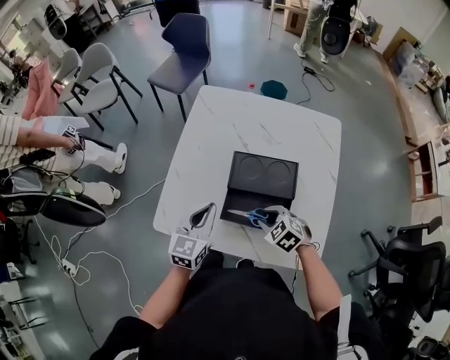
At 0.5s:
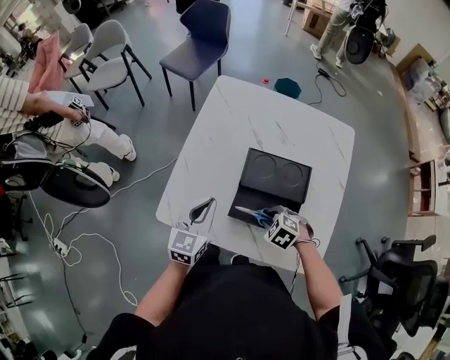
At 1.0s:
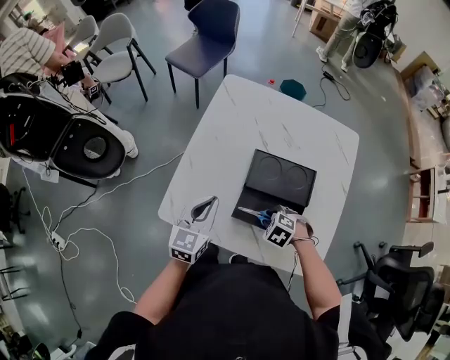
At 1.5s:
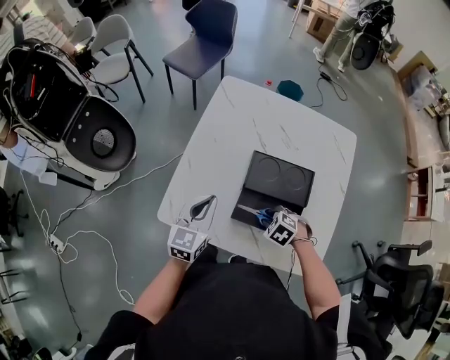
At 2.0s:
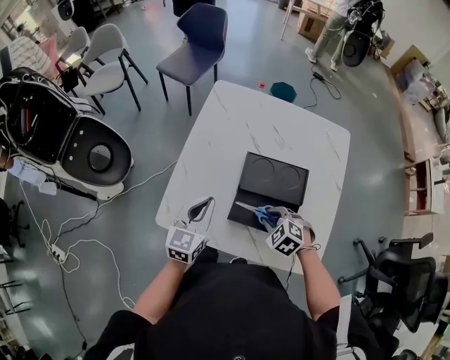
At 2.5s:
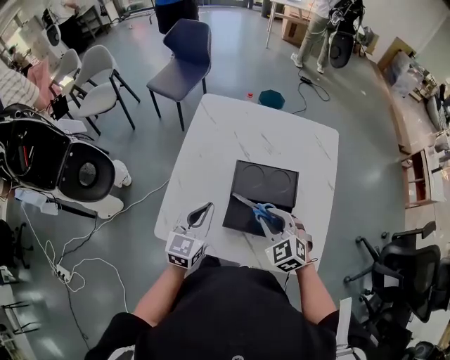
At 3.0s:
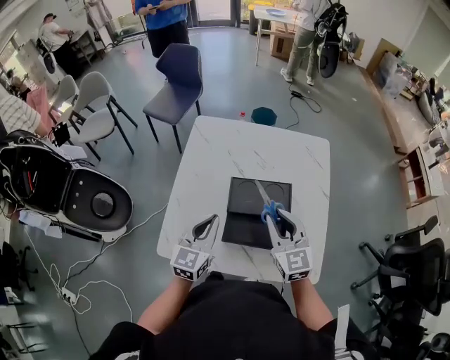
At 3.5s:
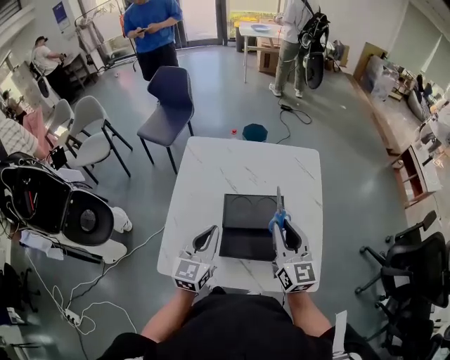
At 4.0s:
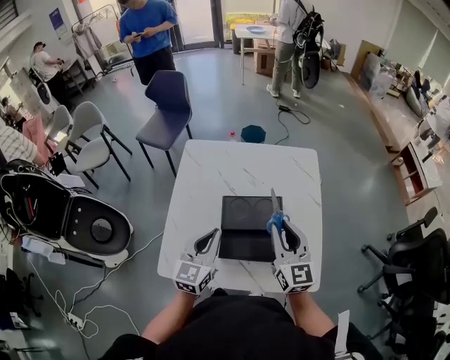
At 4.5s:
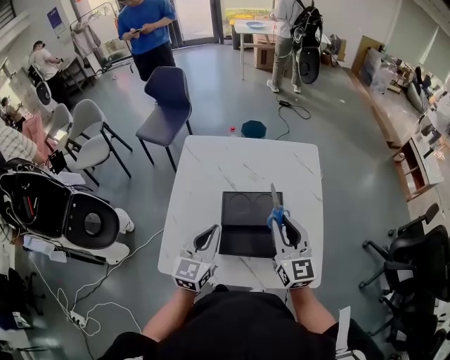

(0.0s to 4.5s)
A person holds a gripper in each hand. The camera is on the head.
2.0s - 4.5s: The right gripper travels upward by roughly 20 cm, and tilts its fingers about 60 degrees upward, while the left gripper is displaced upward by some 5 cm.

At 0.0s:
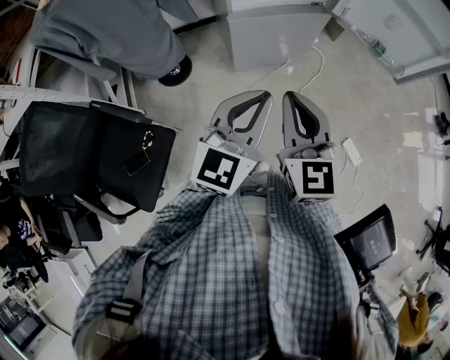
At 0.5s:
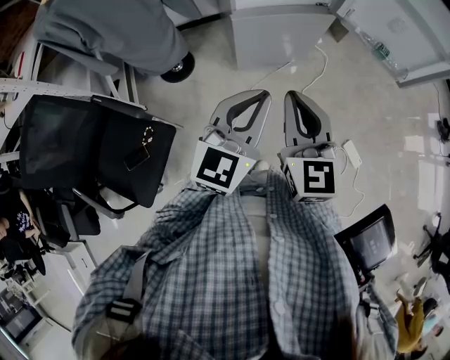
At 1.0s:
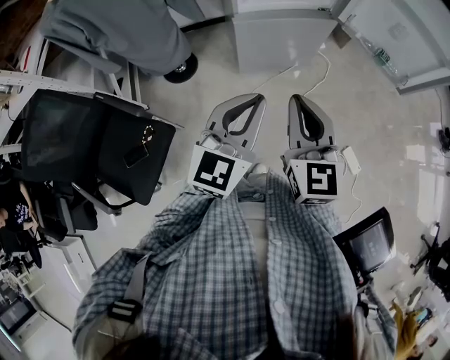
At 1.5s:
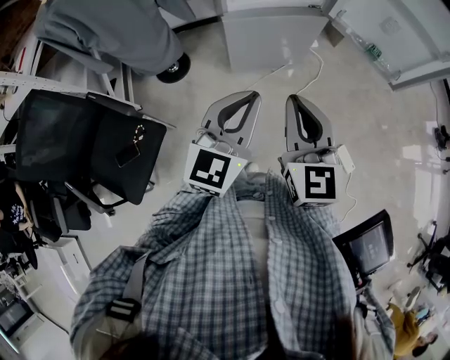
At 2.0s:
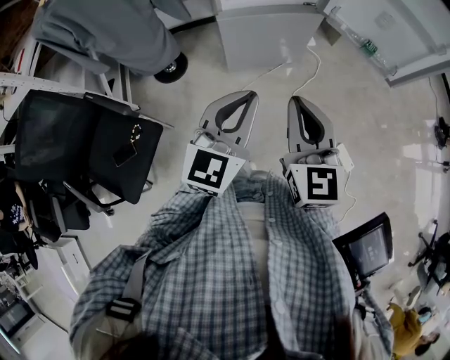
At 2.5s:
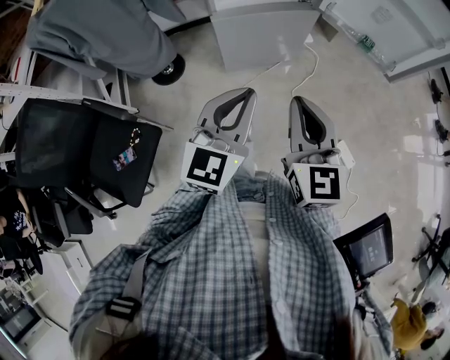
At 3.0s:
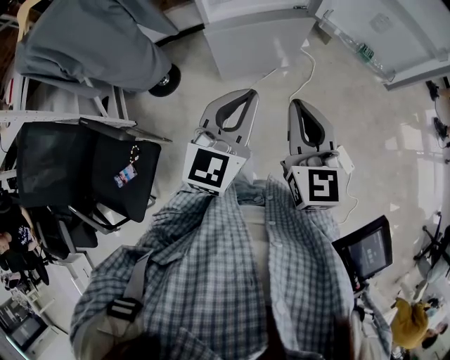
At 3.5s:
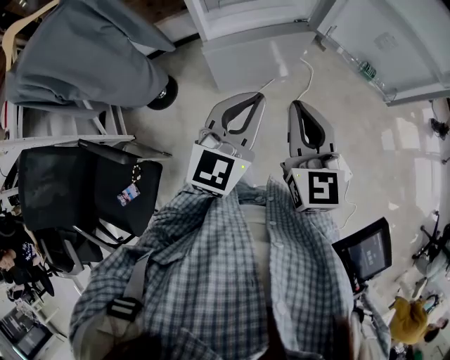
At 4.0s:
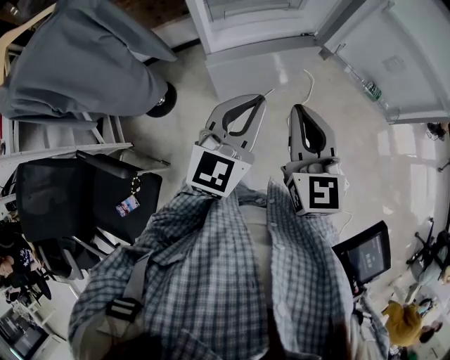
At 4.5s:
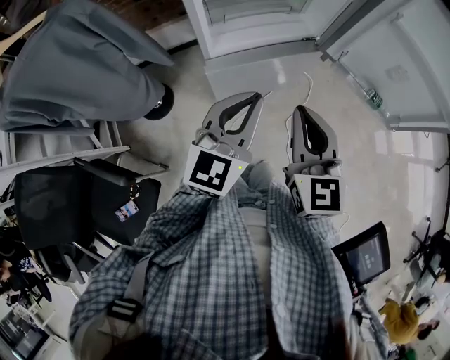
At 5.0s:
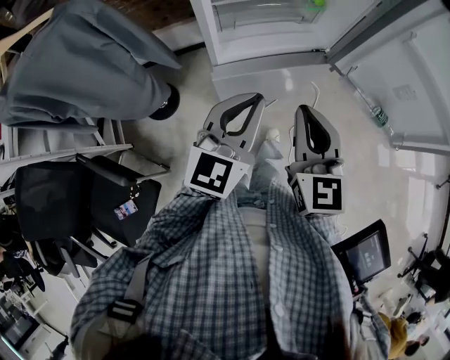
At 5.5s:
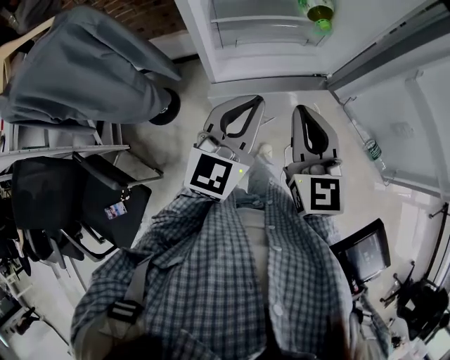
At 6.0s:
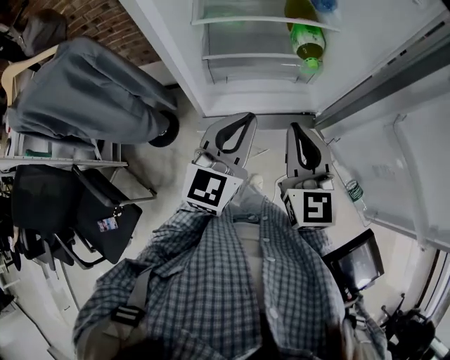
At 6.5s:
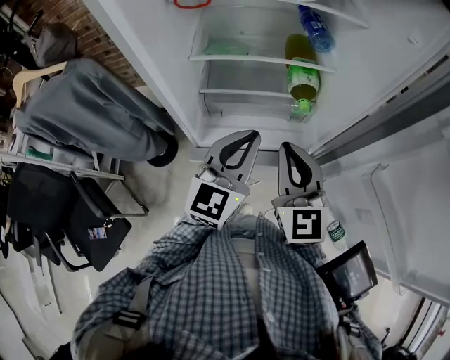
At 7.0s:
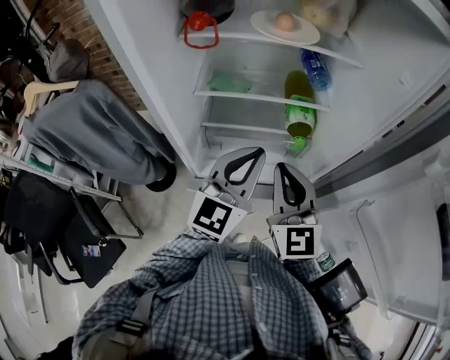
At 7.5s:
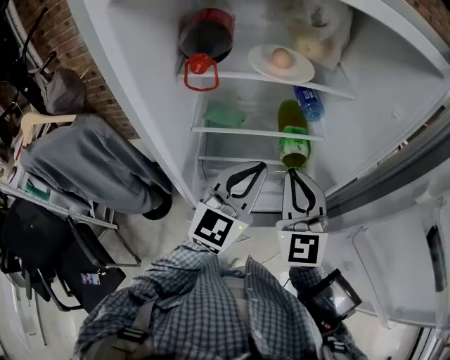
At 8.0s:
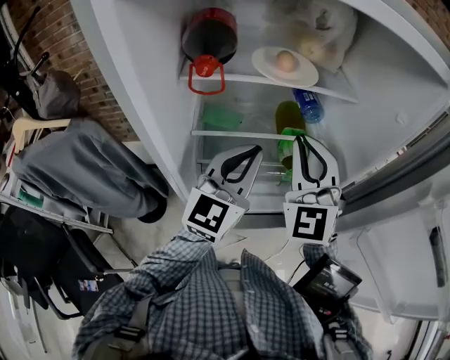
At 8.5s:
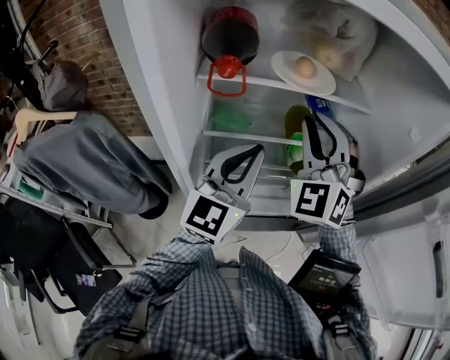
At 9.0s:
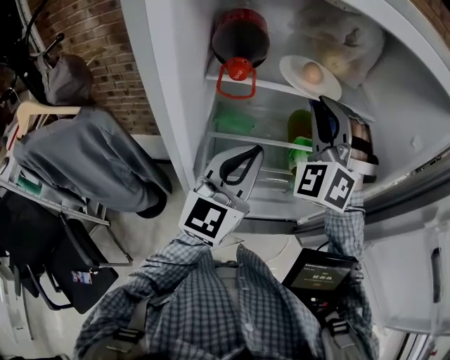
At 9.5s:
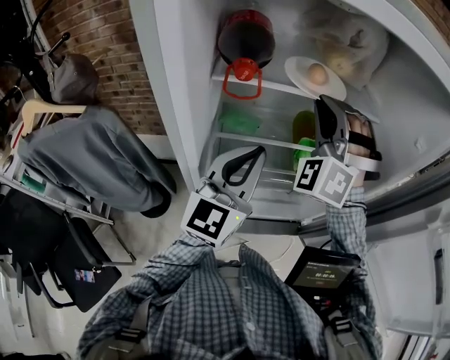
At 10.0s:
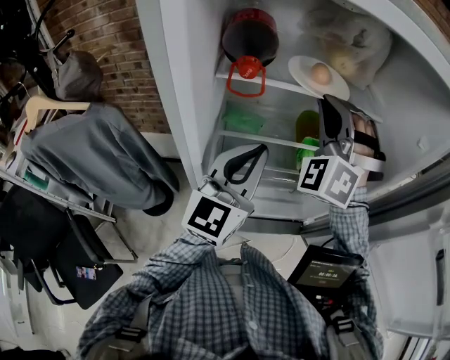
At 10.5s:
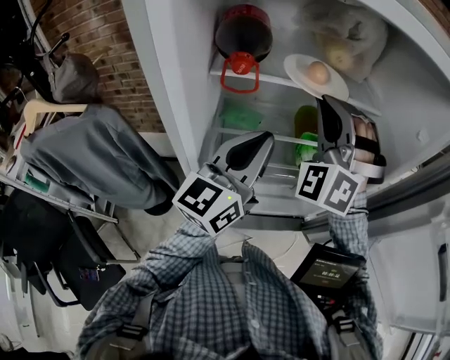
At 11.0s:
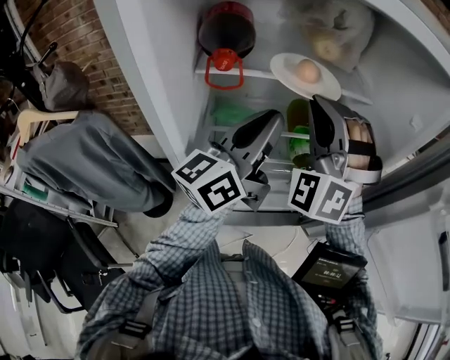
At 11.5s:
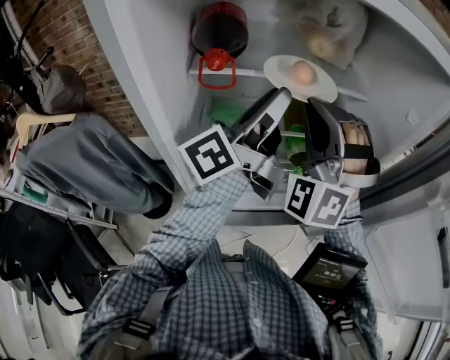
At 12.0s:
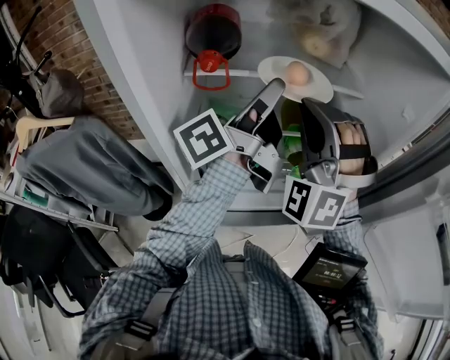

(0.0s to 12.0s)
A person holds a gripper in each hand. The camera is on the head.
0.0s - 2.0s: The right gripper is displaced to the right by approximately 10 cm; the left gripper heads to the right, covering about 5 cm.
2.0s - 4.0s: The two grippers go approximately 20 cm forward.
4.0s - 6.0s: Both grippers move forward, approximately 20 cm.
6.0s - 8.0s: Both grippers travel together forward and upward, approximately 25 cm. The right gripper changes its angle by roughly 40 degrees.
8.0s - 10.0s: The left gripper is displaced to the left by roughly 5 cm, while the right gripper moves forward, roughly 10 cm, and rotates roughly 40 degrees.
10.0s - 12.0s: The right gripper is displaced backward by some 5 cm. Meanwhile the left gripper goes some 10 cm upward and forward, twists about 70 degrees counterclockwise, seen from behind, and opens its fingers.

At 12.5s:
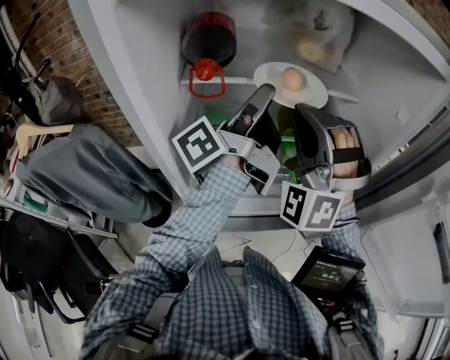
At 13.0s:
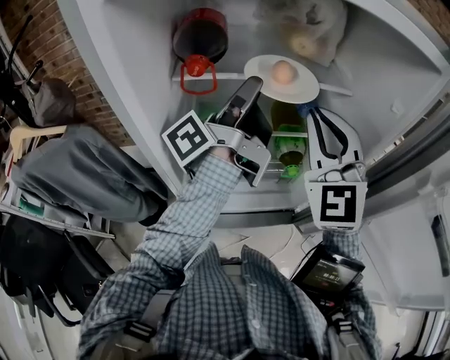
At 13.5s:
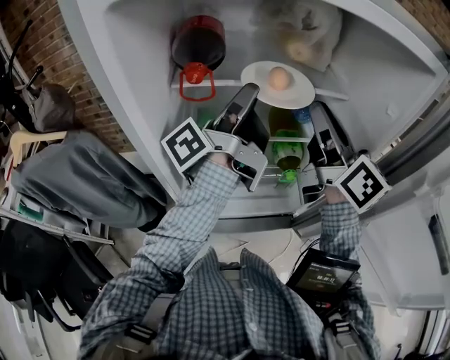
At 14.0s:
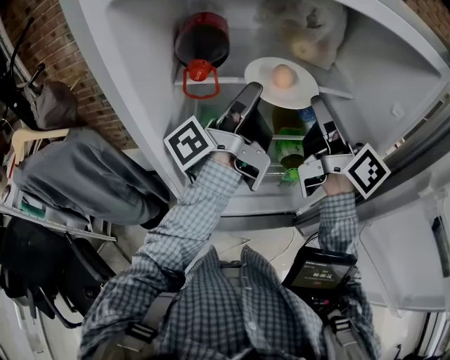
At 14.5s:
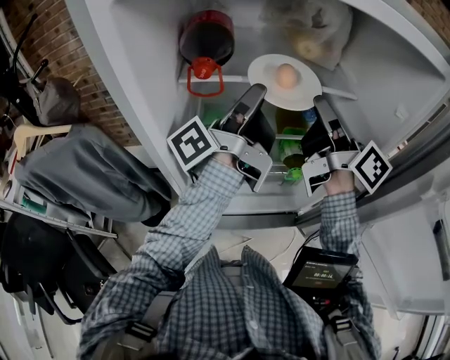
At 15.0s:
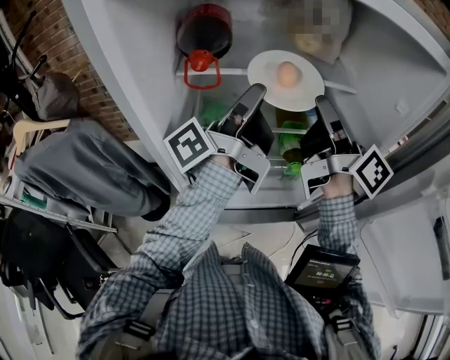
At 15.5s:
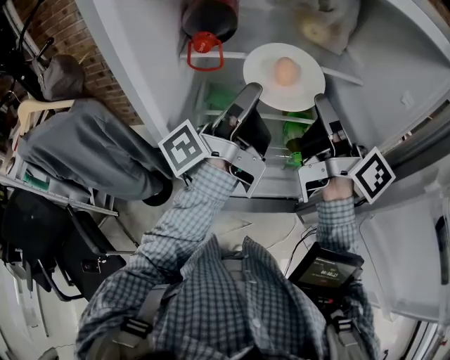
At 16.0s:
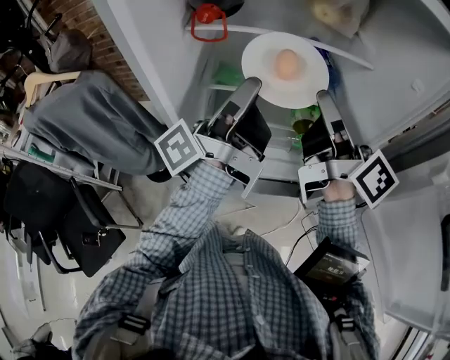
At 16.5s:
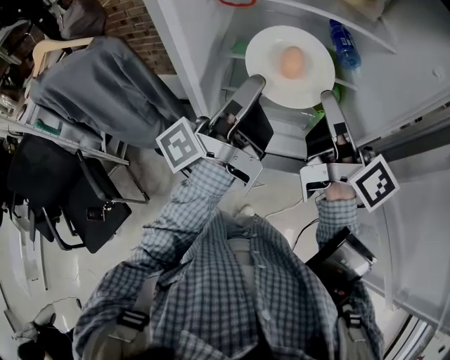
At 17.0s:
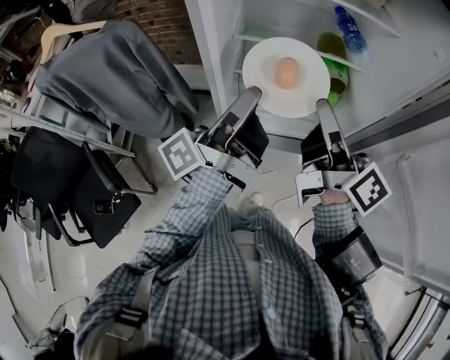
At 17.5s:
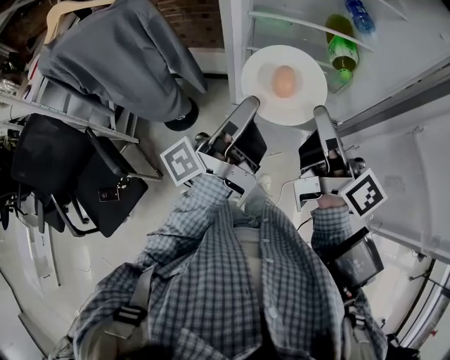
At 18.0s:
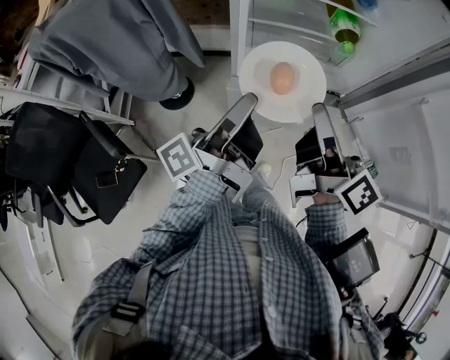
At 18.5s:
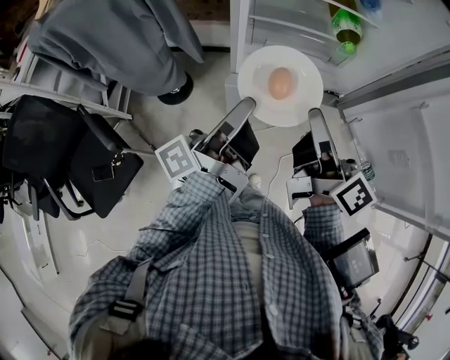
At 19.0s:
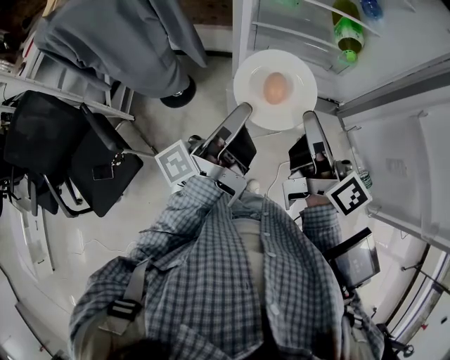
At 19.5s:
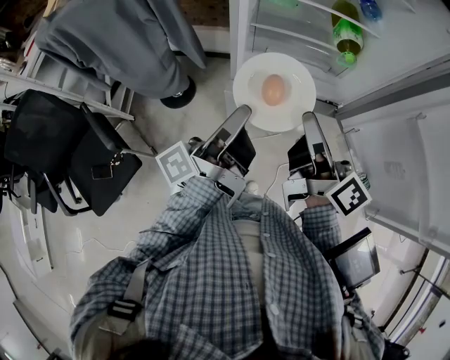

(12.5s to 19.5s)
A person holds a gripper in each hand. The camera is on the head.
12.5s - 14.5s: The right gripper is displaced to the right and forward by roughly 10 cm, and twists some 140 degrees clockwise, seen from behind.
14.5s - 16.0s: The grippers both shift backward by approximately 10 cm.
16.0s - 17.5s: Both grippers move backward, to the left and downward, about 25 cm.
17.5s - 19.5s: The left gripper travels backward and downward by about 10 cm; the right gripper heads backward, covering some 5 cm.

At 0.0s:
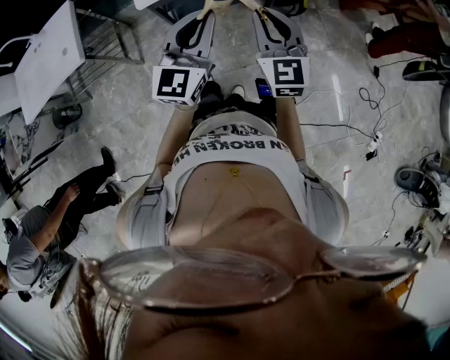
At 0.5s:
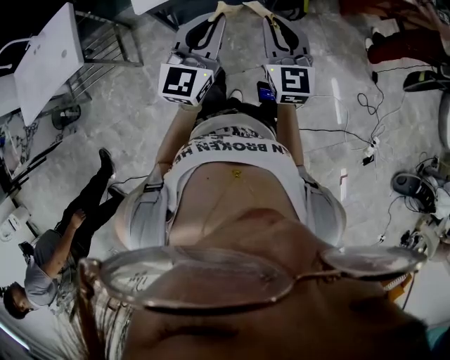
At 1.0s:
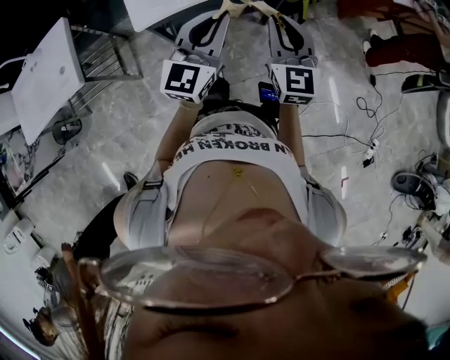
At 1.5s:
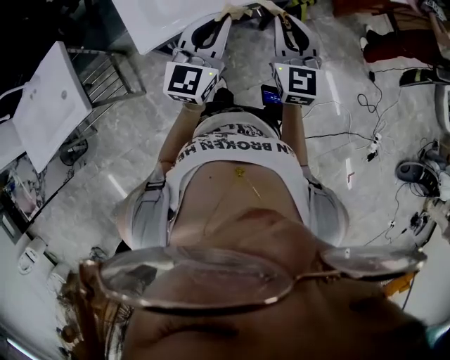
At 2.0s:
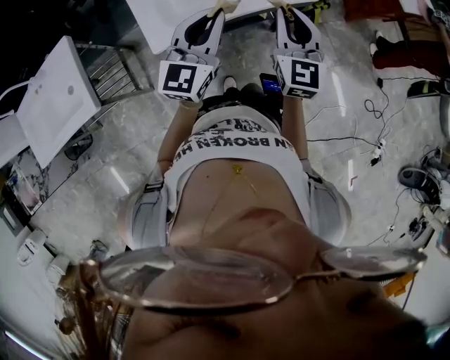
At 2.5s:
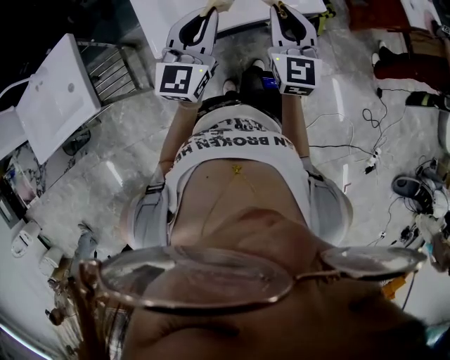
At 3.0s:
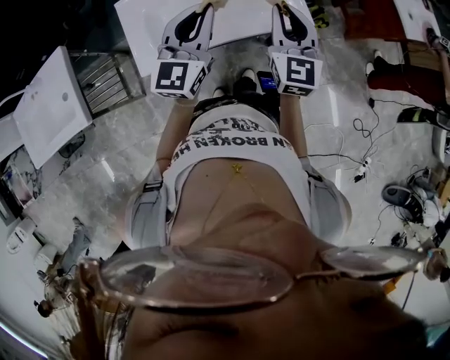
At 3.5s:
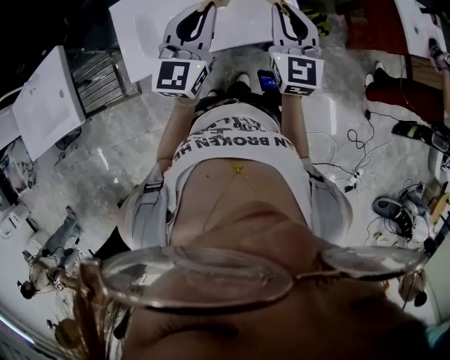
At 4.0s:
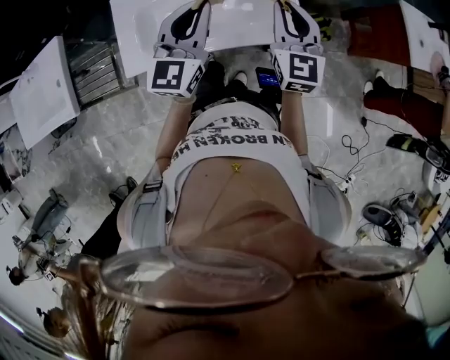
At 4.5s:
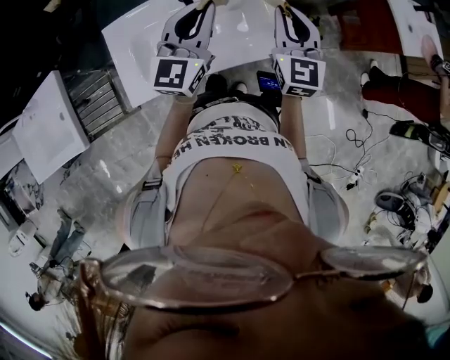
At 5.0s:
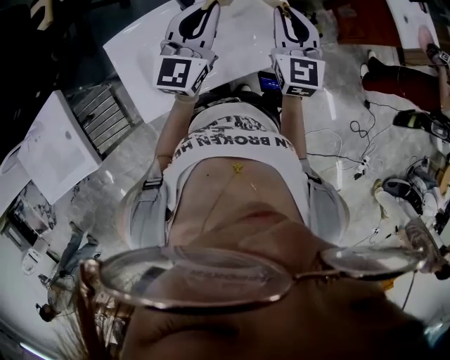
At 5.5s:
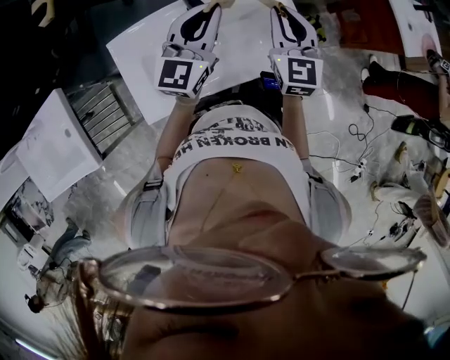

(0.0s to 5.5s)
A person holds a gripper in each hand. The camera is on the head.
0.0s - 2.0s: The left gripper shifts roughly 25 cm forward and to the left; the right gripper heads forward, covering approximately 25 cm.
2.0s - 3.5s: The right gripper moves forward, some 20 cm. The left gripper moves forward and to the right, some 20 cm.
3.5s - 5.5s: The left gripper is displaced forward by some 15 cm, while the right gripper travels forward and to the left by roughly 15 cm.
